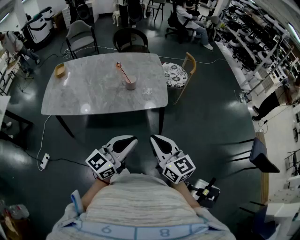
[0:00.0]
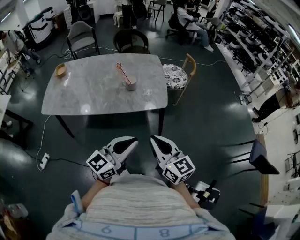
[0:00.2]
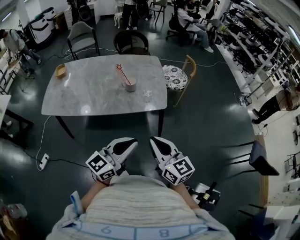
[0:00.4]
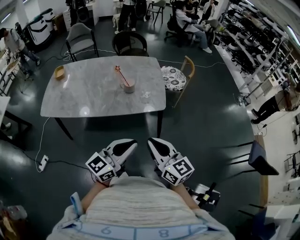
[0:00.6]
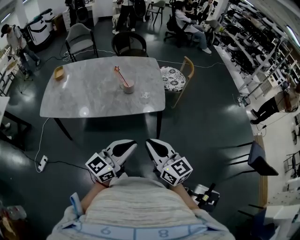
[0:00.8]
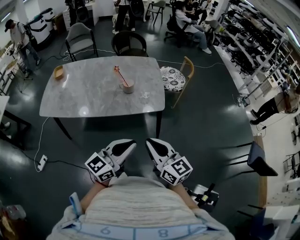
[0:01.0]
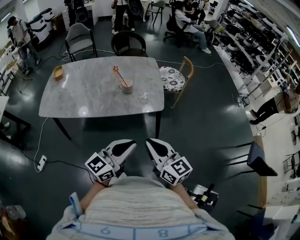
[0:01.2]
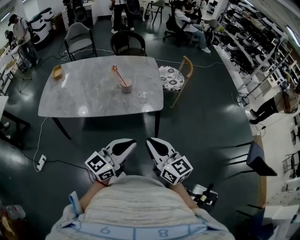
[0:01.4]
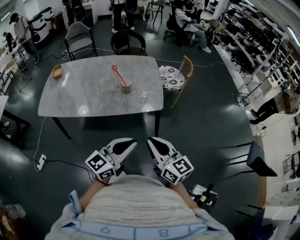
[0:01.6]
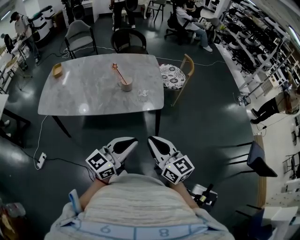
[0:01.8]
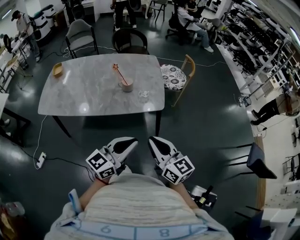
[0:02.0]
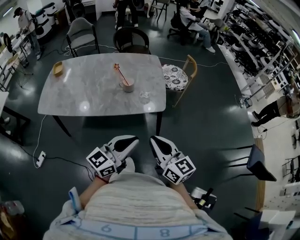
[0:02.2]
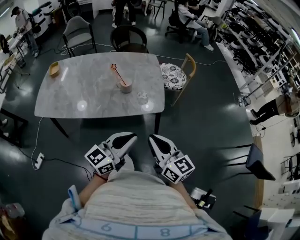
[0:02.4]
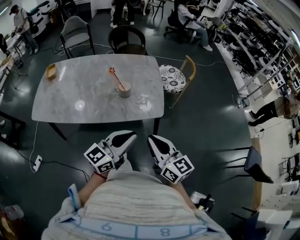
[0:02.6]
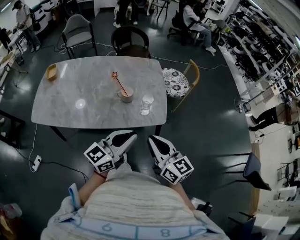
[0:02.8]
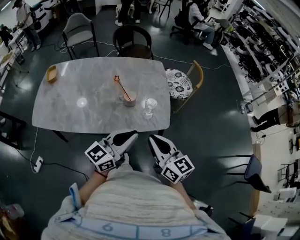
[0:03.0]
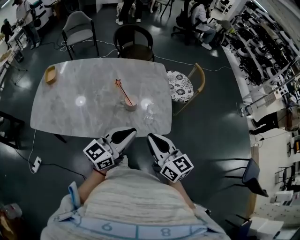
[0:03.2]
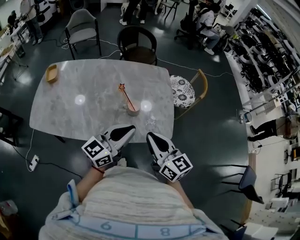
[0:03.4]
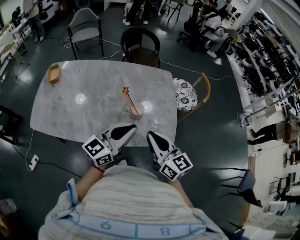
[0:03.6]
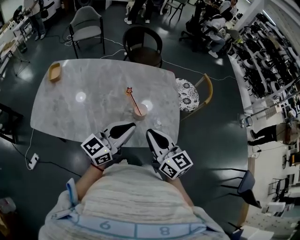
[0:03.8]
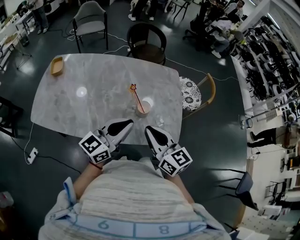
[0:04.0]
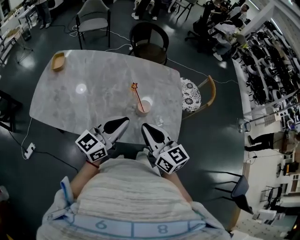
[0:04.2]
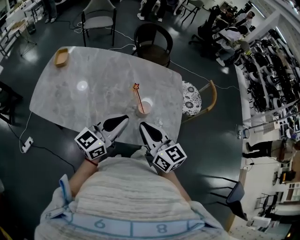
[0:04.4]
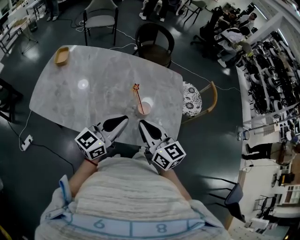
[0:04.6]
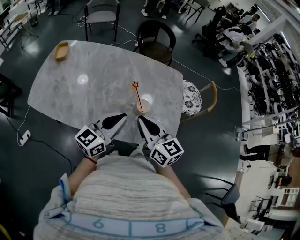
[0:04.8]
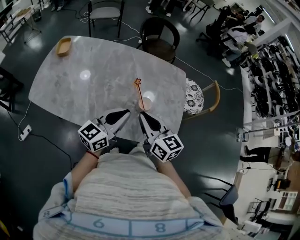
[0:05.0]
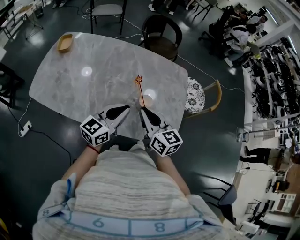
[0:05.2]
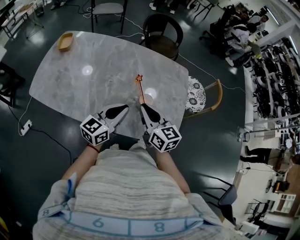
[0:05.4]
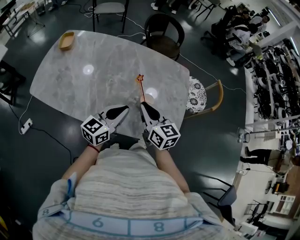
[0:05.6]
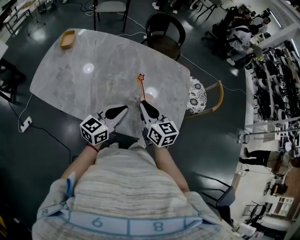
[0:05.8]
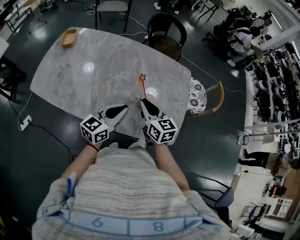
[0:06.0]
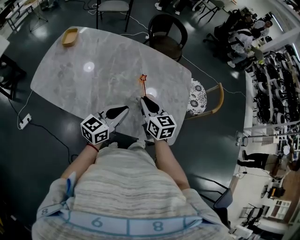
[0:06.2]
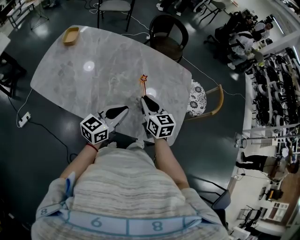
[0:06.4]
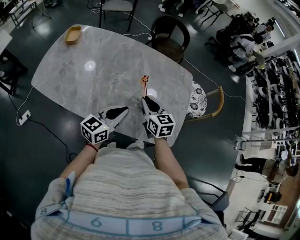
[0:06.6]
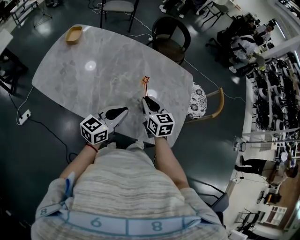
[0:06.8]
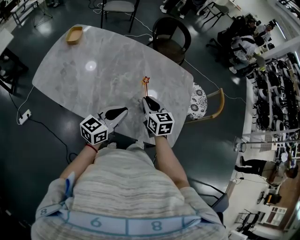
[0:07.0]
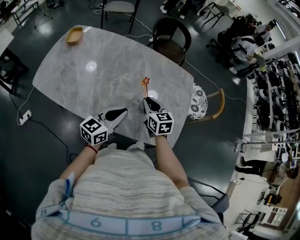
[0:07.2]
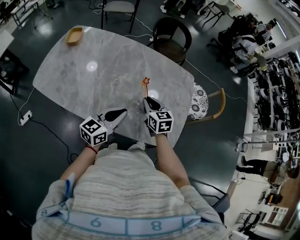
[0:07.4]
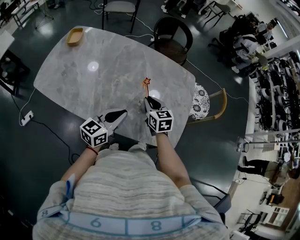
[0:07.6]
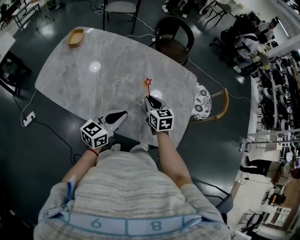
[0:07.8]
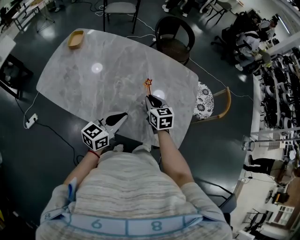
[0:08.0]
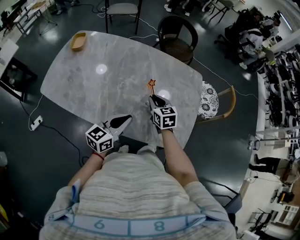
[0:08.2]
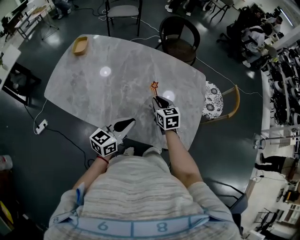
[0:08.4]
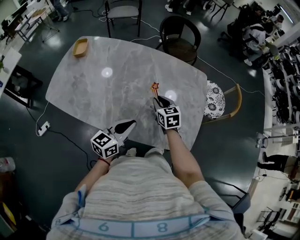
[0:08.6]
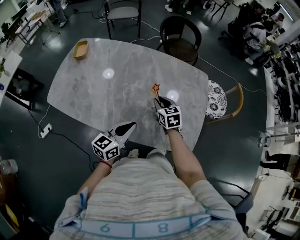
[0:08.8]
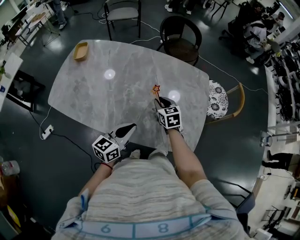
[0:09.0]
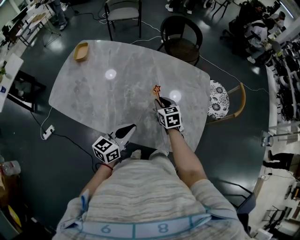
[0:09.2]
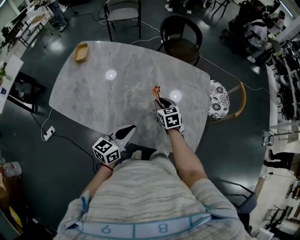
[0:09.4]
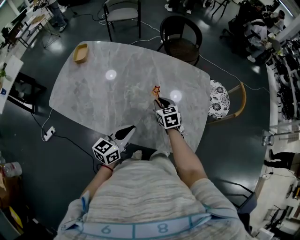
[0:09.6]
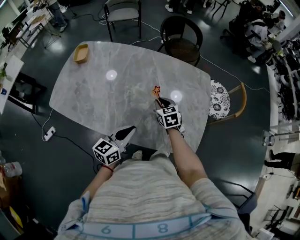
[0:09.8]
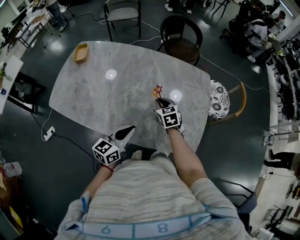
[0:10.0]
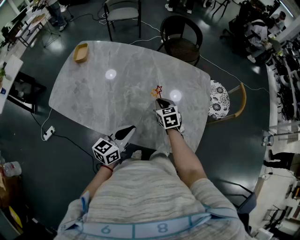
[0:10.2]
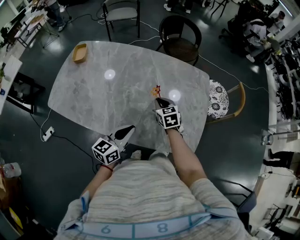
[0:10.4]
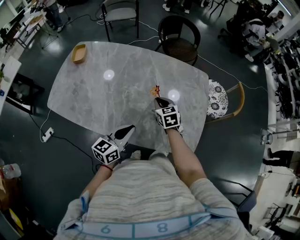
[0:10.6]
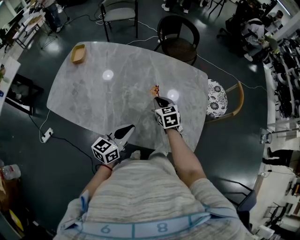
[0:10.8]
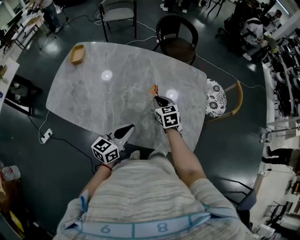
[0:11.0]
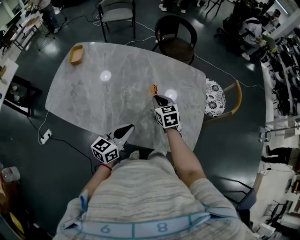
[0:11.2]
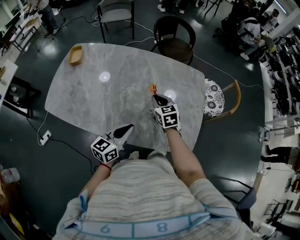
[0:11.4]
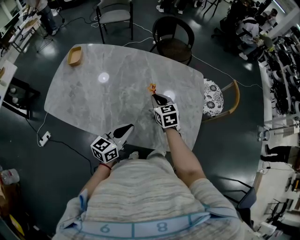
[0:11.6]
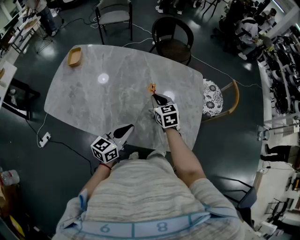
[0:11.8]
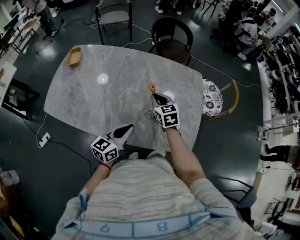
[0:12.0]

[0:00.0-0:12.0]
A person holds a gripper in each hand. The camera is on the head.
0:00.0 to 0:01.6: There are only small adjustments of the grippers.
0:01.6 to 0:03.0: Both grippers travel together forward, approximately 20 cm.
0:03.0 to 0:04.4: The left gripper heads to the left and forward, covering roughly 20 cm. Meanwhile the right gripper shifts approximately 20 cm forward and to the left.
0:04.4 to 0:06.0: The right gripper shifts about 15 cm forward and downward. The left gripper shifts some 10 cm downward.
0:06.0 to 0:07.6: The right gripper shifts roughly 10 cm downward and forward.
0:07.6 to 0:09.0: The right gripper shifts by approximately 5 cm.
0:09.0 to 0:10.4: The grippers move only a little.
0:10.4 to 0:12.0: The right gripper travels upward by approximately 5 cm.

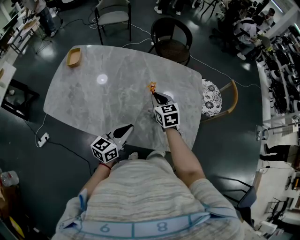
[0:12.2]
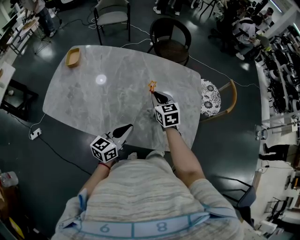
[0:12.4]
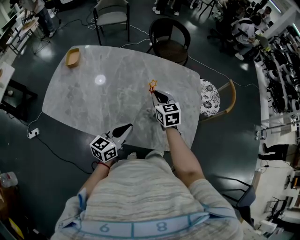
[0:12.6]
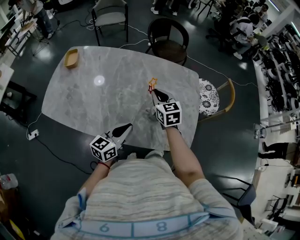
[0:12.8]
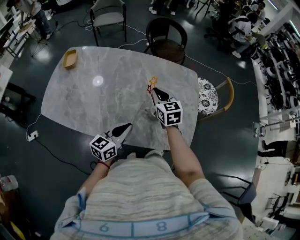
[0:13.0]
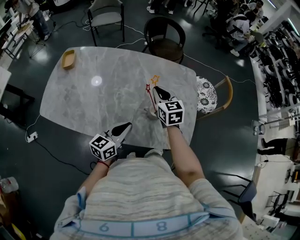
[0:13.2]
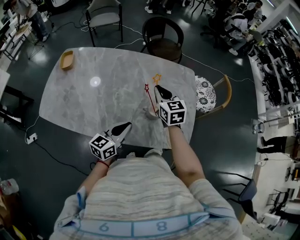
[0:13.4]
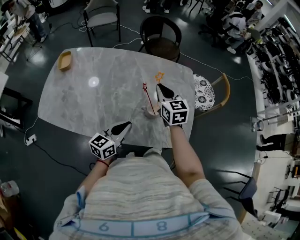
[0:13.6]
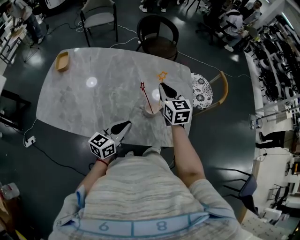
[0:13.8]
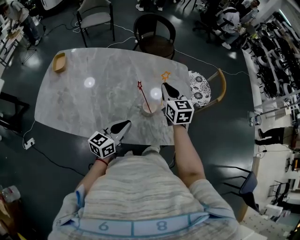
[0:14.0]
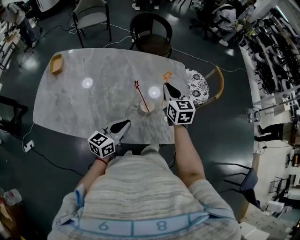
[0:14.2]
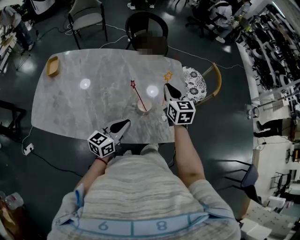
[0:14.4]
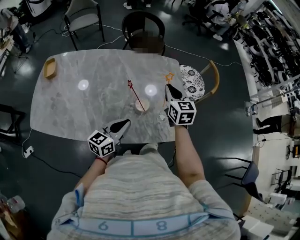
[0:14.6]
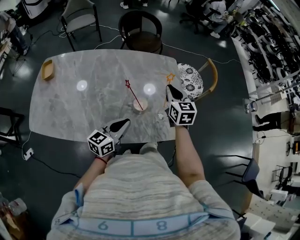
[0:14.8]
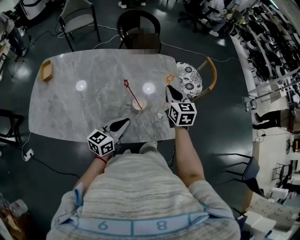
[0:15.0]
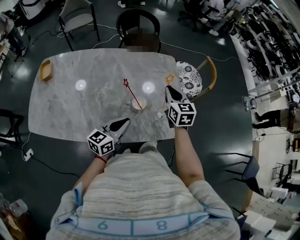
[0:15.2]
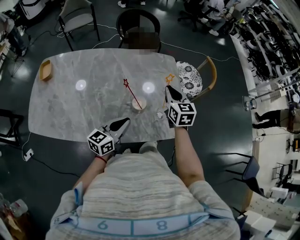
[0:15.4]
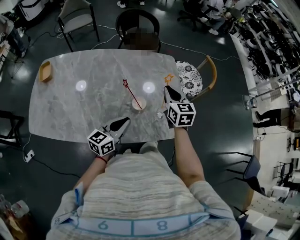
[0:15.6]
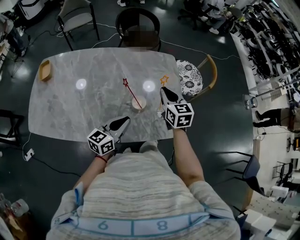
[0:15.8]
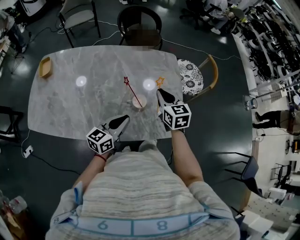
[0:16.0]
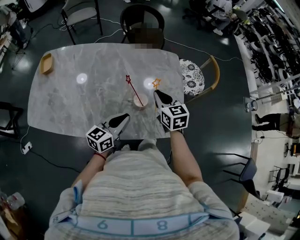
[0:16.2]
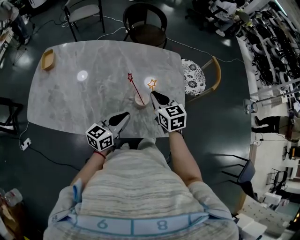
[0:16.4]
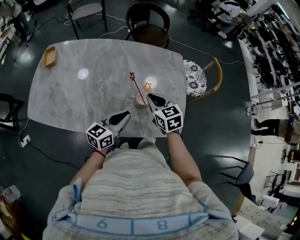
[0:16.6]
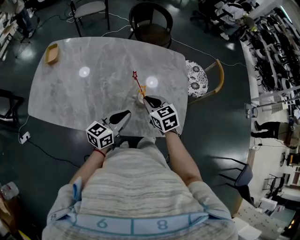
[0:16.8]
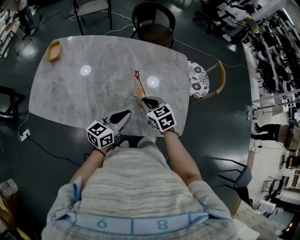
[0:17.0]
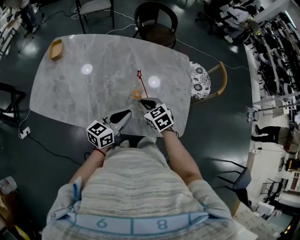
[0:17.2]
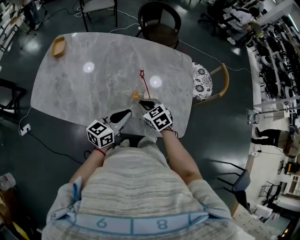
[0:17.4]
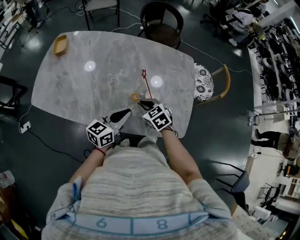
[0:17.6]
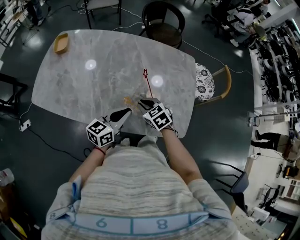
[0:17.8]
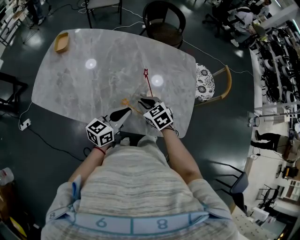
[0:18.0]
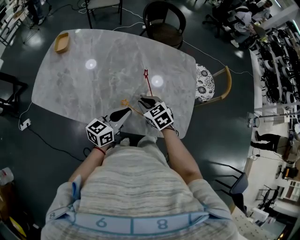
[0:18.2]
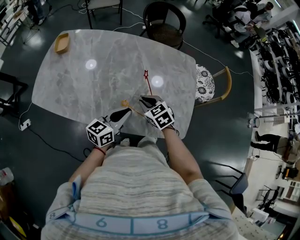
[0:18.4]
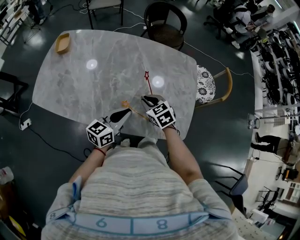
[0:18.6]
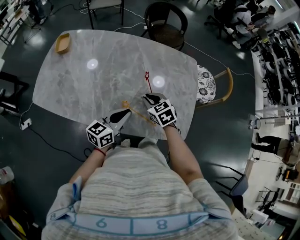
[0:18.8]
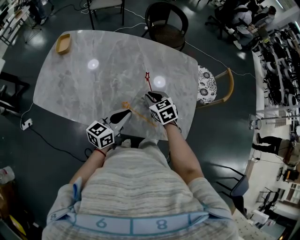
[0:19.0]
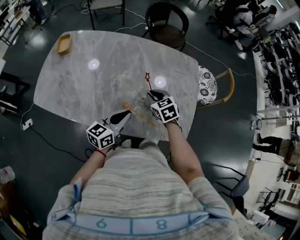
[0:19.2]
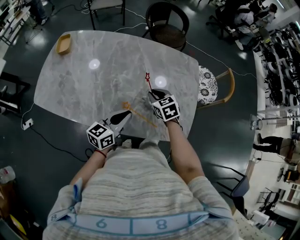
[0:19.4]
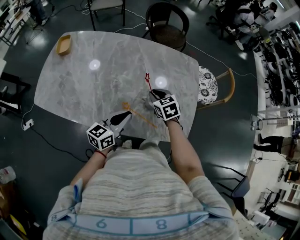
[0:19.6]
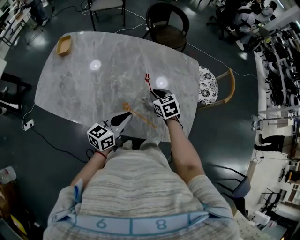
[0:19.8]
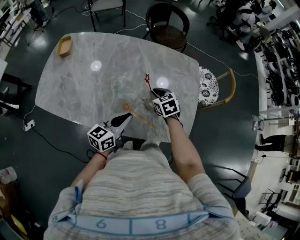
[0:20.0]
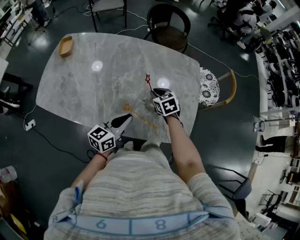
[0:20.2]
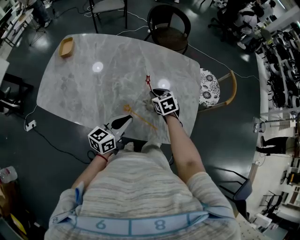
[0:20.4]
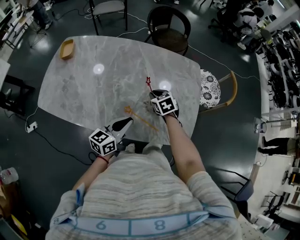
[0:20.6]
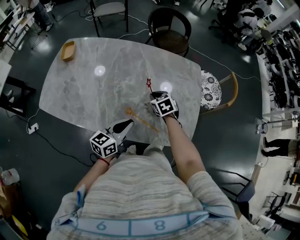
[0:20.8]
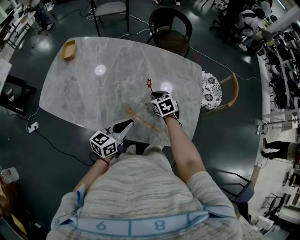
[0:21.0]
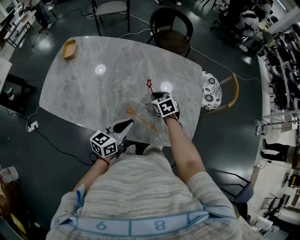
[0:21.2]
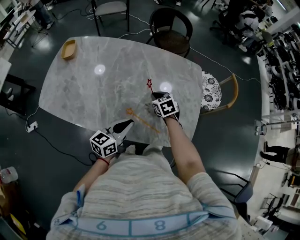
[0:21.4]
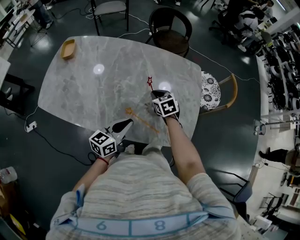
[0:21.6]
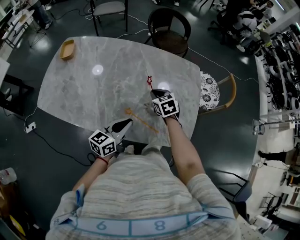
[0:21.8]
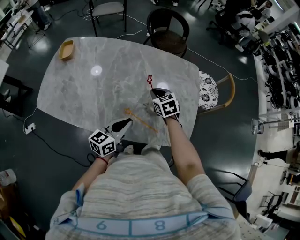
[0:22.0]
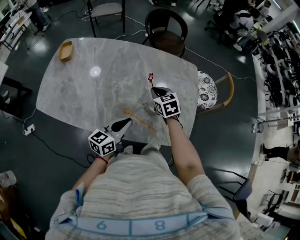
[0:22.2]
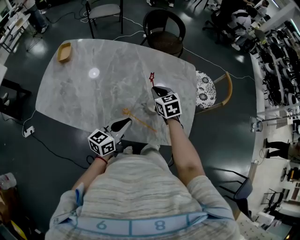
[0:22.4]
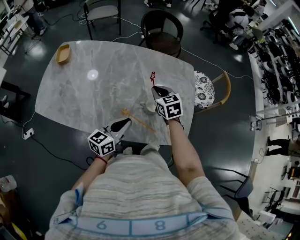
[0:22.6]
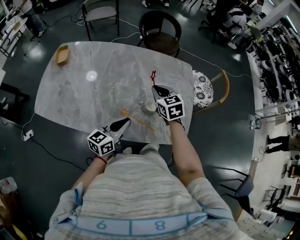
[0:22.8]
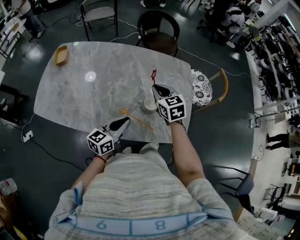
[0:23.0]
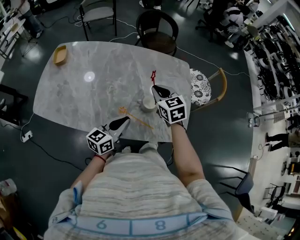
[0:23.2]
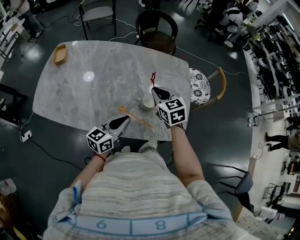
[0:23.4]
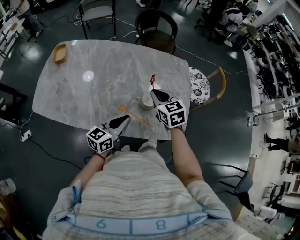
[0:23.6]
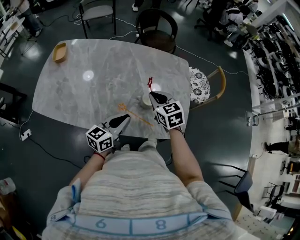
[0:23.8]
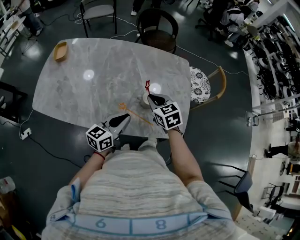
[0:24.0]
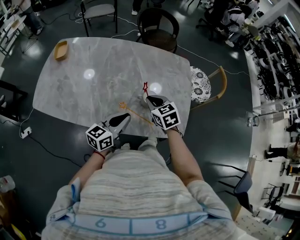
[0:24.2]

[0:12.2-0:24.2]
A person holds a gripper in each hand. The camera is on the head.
0:12.2 to 0:13.8: The right gripper moves upward and to the right, approximately 10 cm.
0:13.8 to 0:15.2: The right gripper moves to the right, about 10 cm; the left gripper shifts by some 5 cm.
0:15.2 to 0:16.6: The right gripper travels to the left and backward by some 10 cm, and changes its angle by approximately 20 degrees.
0:16.6 to 0:18.2: The right gripper moves to the left and downward, some 10 cm, and changes its angle by some 20 degrees.
0:18.2 to 0:19.8: The right gripper travels forward by roughly 10 cm.
0:19.8 to 0:21.2: The grippers stay close to where they were, moving slightly.
0:21.2 to 0:22.6: The right gripper travels upward by some 10 cm.
0:22.6 to 0:24.2: The right gripper moves backward, some 10 cm.
